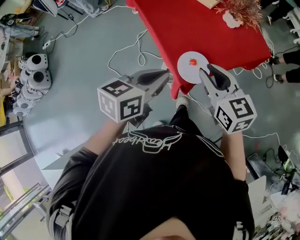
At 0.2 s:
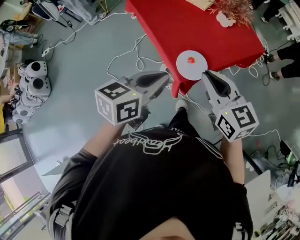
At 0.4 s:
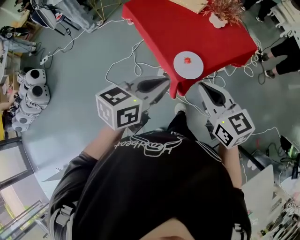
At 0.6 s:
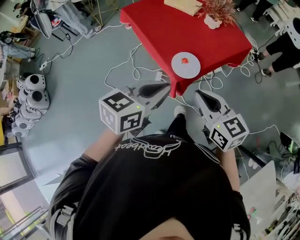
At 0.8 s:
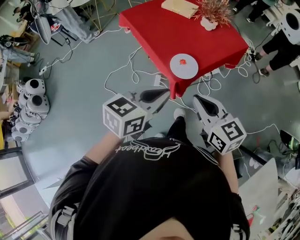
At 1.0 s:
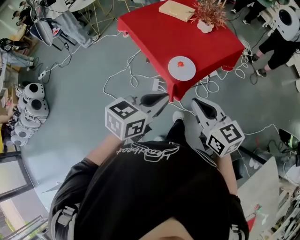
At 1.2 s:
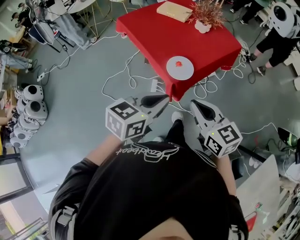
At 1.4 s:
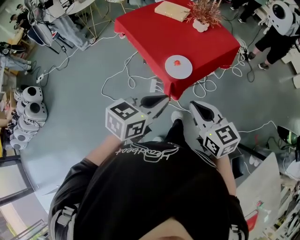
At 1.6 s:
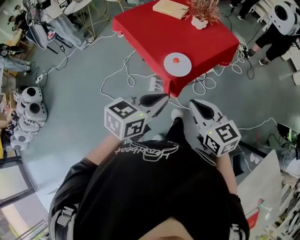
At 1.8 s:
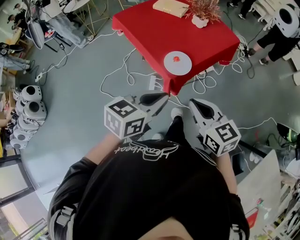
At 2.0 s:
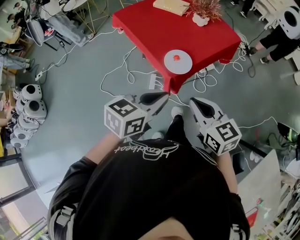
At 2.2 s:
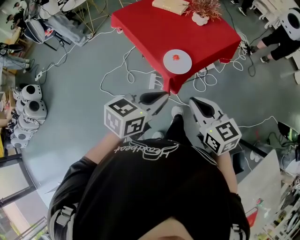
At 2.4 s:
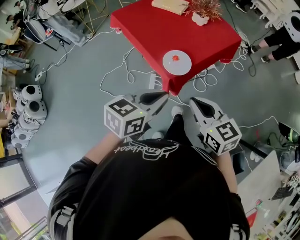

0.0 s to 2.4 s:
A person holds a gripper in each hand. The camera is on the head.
0.0 to 1.2 s: The grippers both shift backward by roughly 15 cm. The right gripper closes its fingers.
1.2 to 2.4 s: The grippers make only small movements.

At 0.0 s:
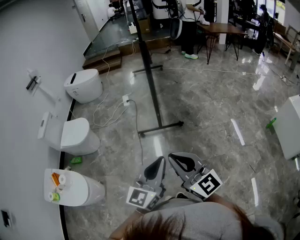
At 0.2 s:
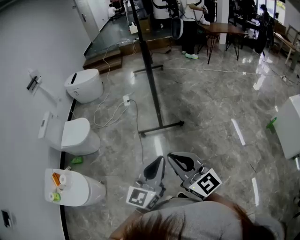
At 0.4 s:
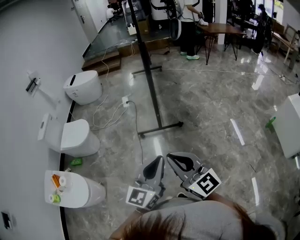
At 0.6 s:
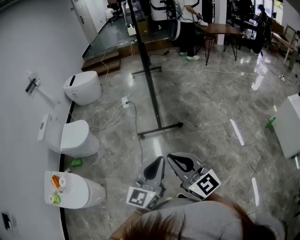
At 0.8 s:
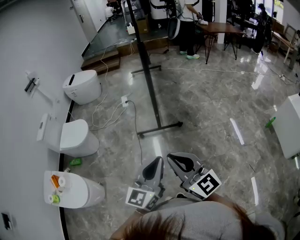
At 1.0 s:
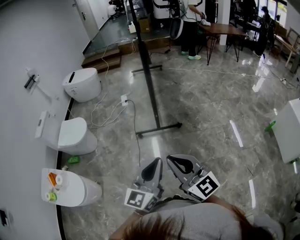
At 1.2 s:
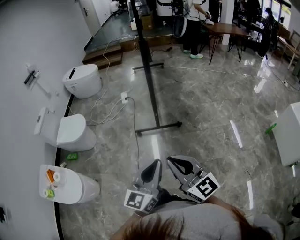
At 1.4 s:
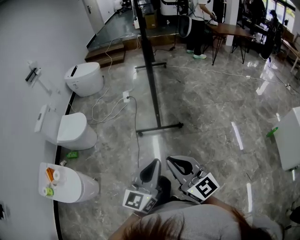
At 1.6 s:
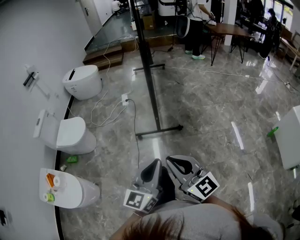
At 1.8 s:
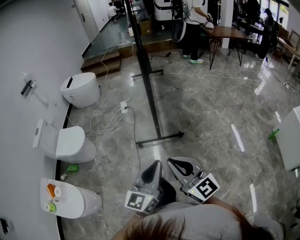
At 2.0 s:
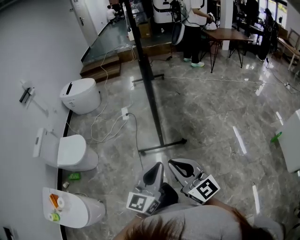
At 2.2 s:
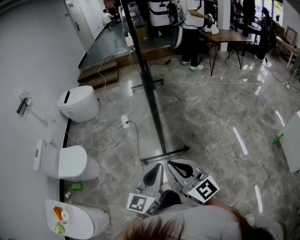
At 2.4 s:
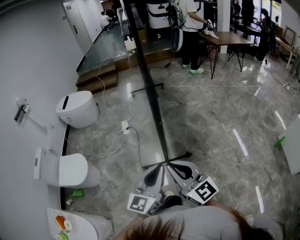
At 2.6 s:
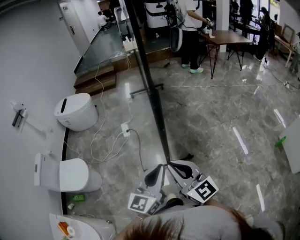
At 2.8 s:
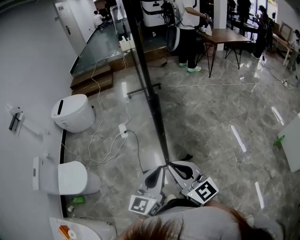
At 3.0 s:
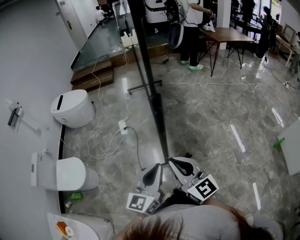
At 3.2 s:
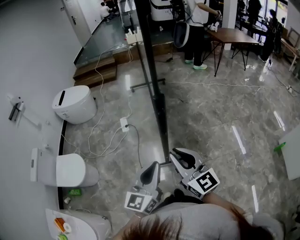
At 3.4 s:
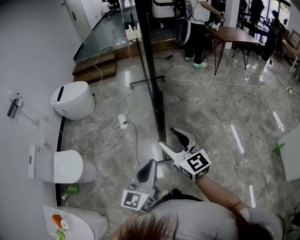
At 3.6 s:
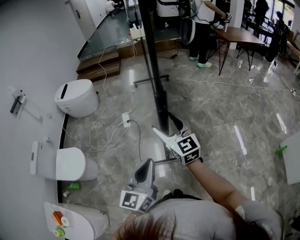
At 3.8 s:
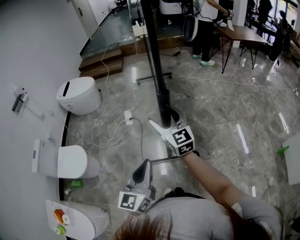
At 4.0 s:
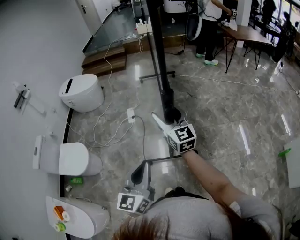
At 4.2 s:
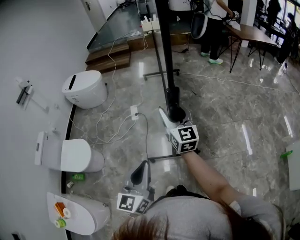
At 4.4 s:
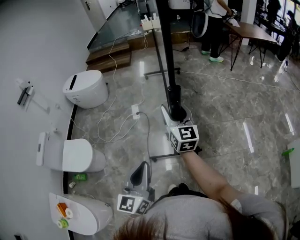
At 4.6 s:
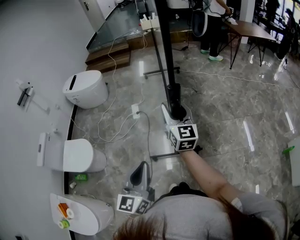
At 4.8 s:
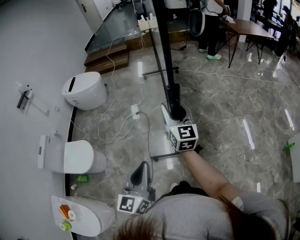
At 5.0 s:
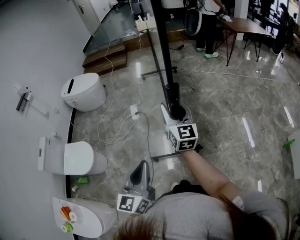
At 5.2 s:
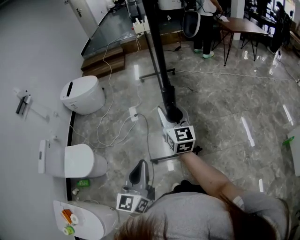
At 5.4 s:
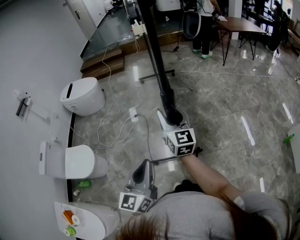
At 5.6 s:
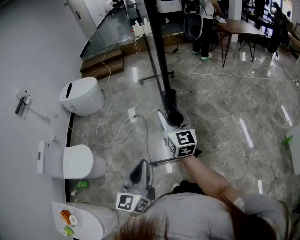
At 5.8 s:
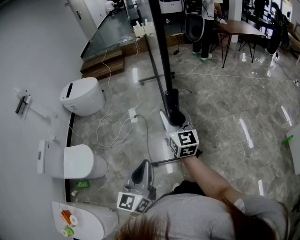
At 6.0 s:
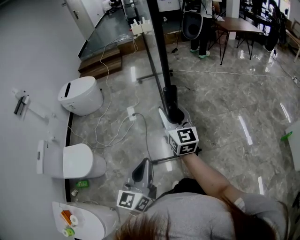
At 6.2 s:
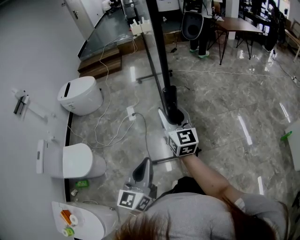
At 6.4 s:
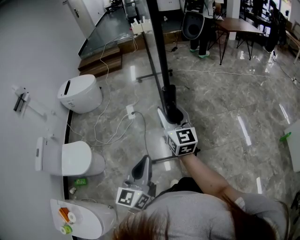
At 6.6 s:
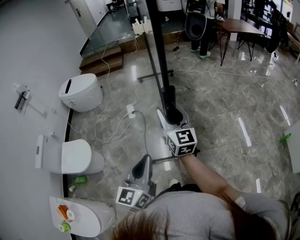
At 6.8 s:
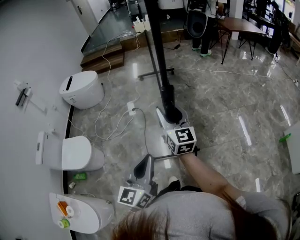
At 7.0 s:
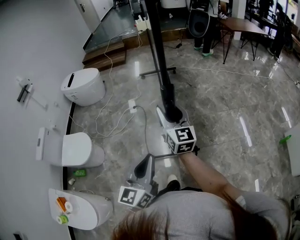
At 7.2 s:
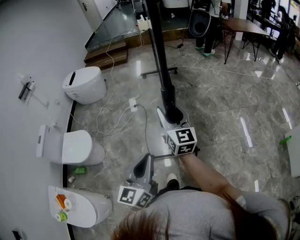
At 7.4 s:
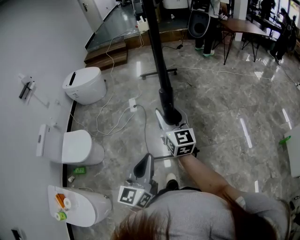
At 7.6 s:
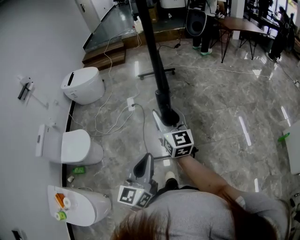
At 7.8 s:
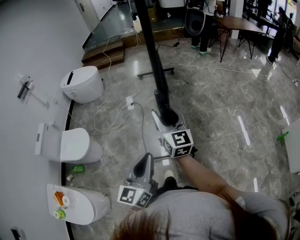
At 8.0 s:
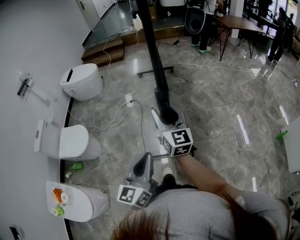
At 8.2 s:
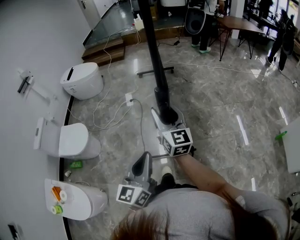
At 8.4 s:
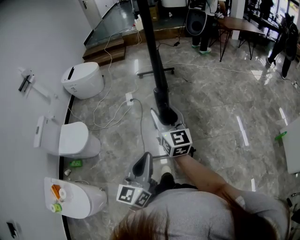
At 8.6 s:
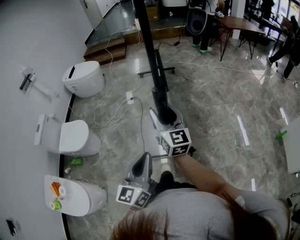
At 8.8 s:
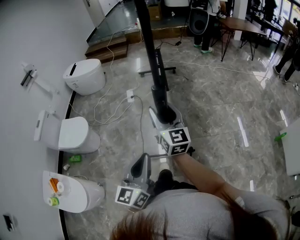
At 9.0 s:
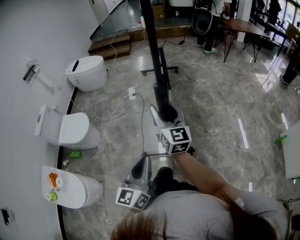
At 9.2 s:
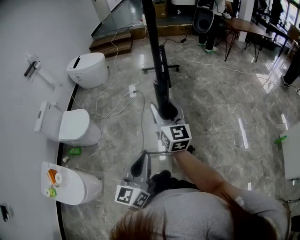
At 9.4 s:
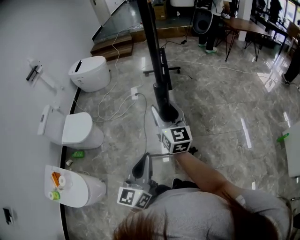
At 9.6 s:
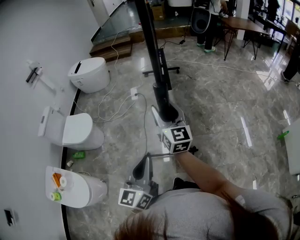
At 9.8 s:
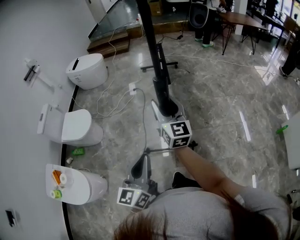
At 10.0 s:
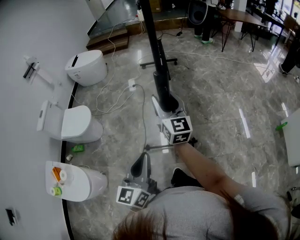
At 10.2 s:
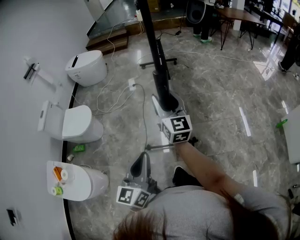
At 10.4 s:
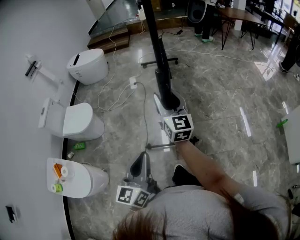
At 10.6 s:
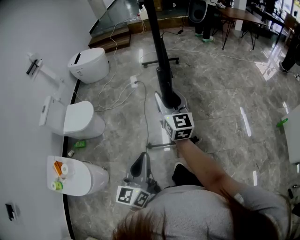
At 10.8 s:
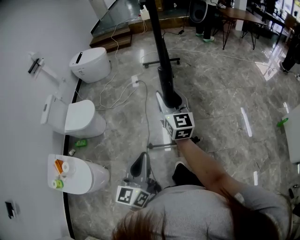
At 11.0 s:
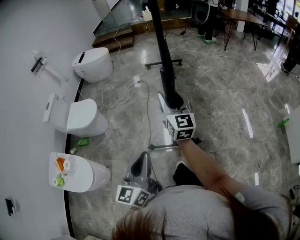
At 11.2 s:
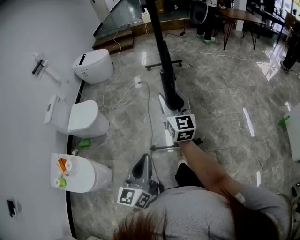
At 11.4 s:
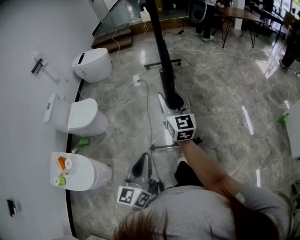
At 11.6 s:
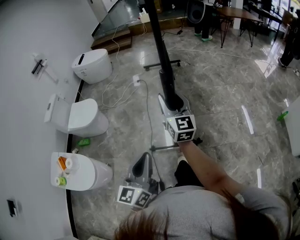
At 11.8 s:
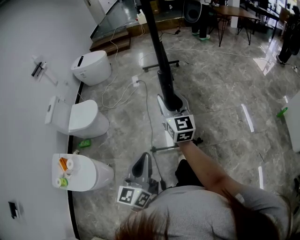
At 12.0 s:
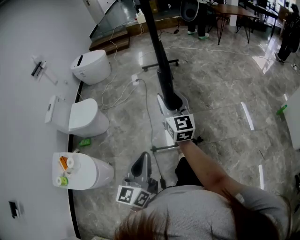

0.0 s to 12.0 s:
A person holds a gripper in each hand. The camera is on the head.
0.0 to 1.6 s: Both grippers travel together forward, roughly 5 cm.
1.6 to 3.0 s: The grippers both shift forward by approximately 35 cm.
3.0 to 4.4 s: The right gripper moves forward, approximately 20 cm, and opens; the left gripper moves to the left, approximately 10 cm.
4.4 to 6.0 s: The right gripper is displaced backward by roughly 5 cm.
6.0 to 7.6 s: The right gripper shifts some 10 cm backward, while the left gripper is displaced backward and to the right by approximately 10 cm.
7.6 to 9.0 s: Both grippers move backward, about 10 cm.
9.0 to 10.4 s: The two grippers go about 5 cm backward.
10.4 to 12.0 s: Both grippers move backward, about 10 cm.

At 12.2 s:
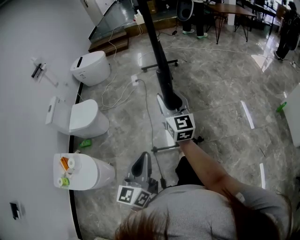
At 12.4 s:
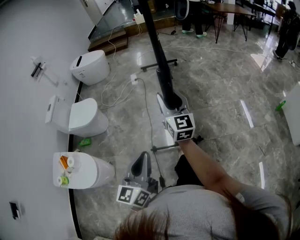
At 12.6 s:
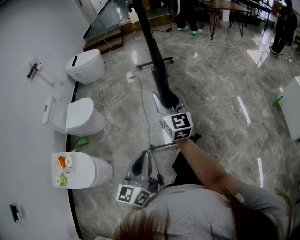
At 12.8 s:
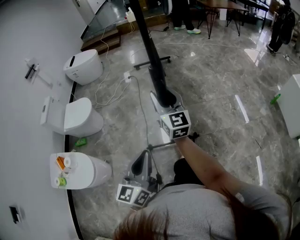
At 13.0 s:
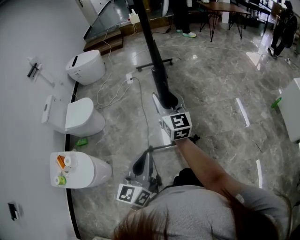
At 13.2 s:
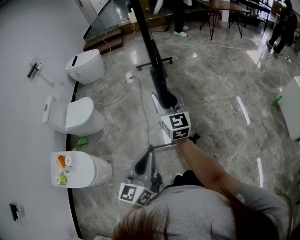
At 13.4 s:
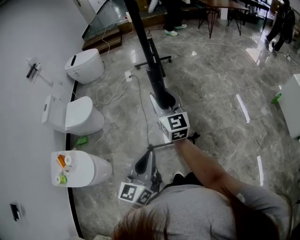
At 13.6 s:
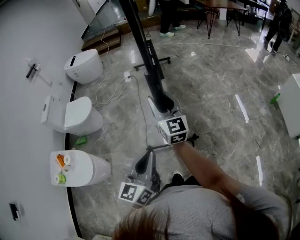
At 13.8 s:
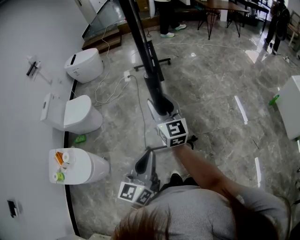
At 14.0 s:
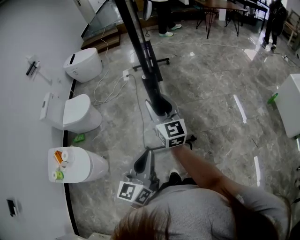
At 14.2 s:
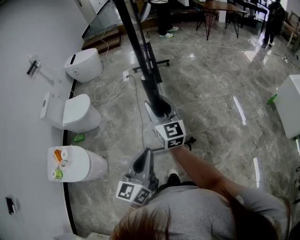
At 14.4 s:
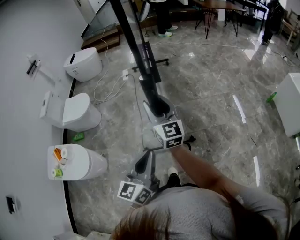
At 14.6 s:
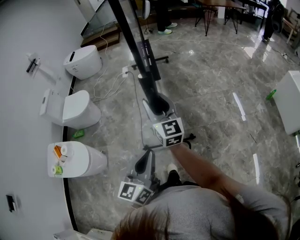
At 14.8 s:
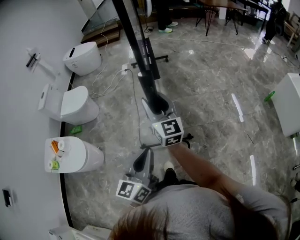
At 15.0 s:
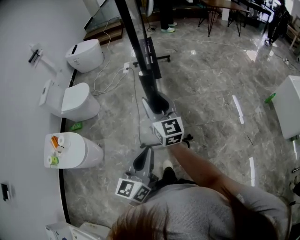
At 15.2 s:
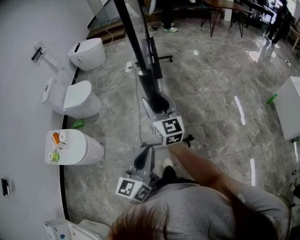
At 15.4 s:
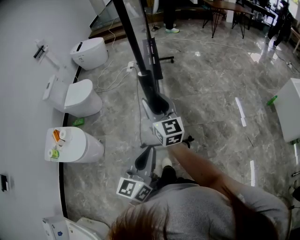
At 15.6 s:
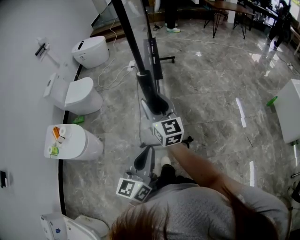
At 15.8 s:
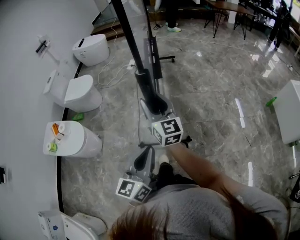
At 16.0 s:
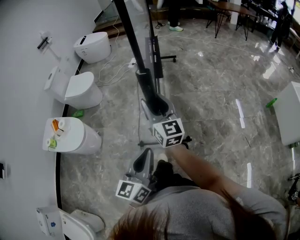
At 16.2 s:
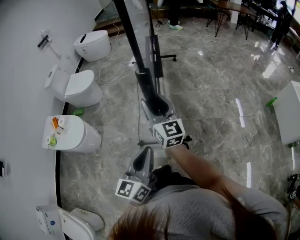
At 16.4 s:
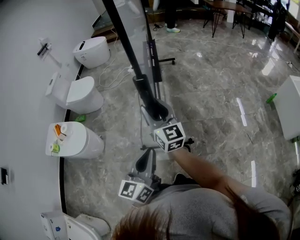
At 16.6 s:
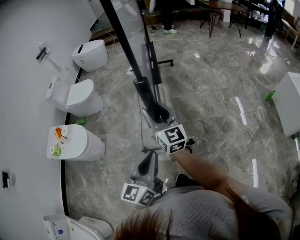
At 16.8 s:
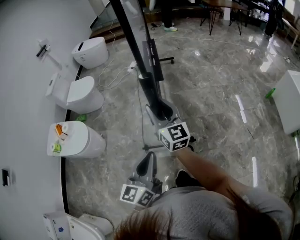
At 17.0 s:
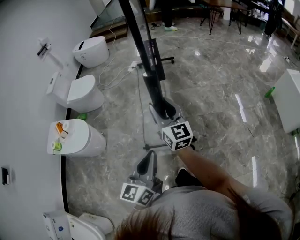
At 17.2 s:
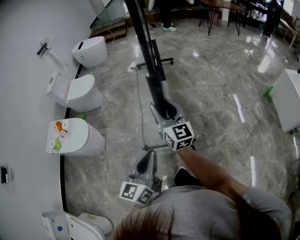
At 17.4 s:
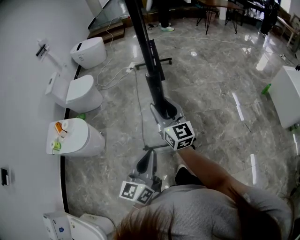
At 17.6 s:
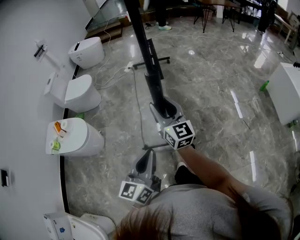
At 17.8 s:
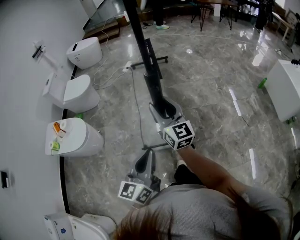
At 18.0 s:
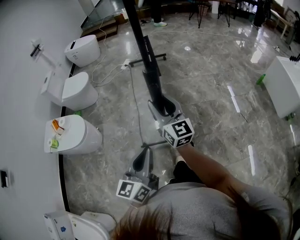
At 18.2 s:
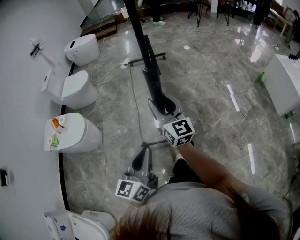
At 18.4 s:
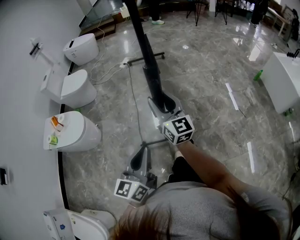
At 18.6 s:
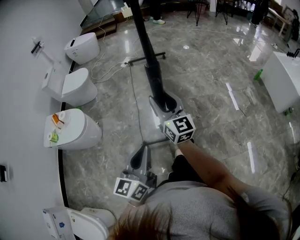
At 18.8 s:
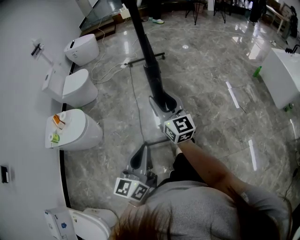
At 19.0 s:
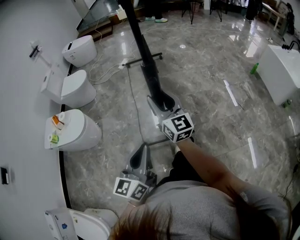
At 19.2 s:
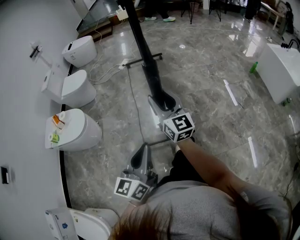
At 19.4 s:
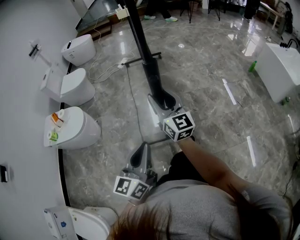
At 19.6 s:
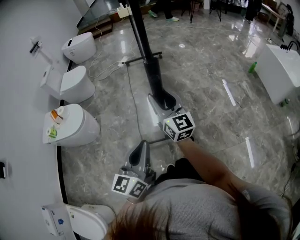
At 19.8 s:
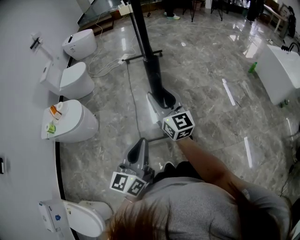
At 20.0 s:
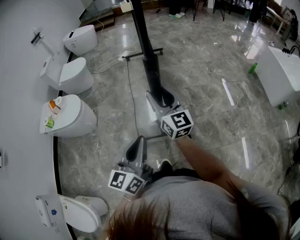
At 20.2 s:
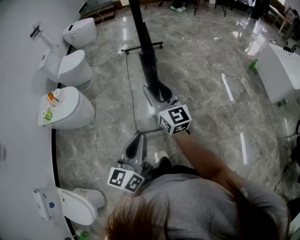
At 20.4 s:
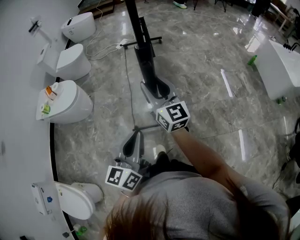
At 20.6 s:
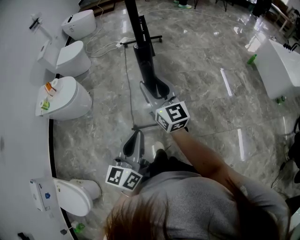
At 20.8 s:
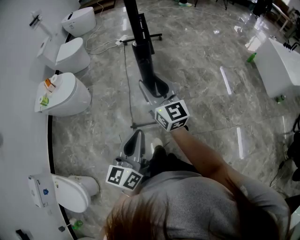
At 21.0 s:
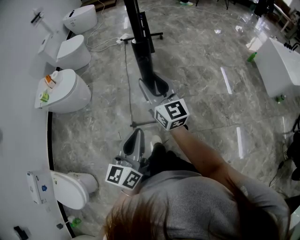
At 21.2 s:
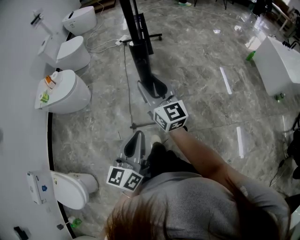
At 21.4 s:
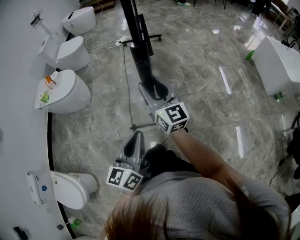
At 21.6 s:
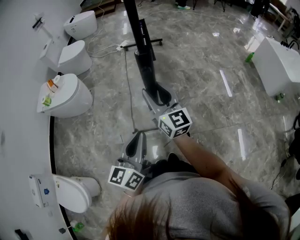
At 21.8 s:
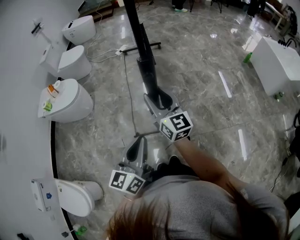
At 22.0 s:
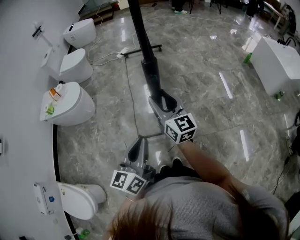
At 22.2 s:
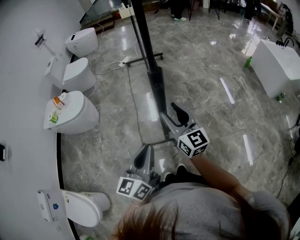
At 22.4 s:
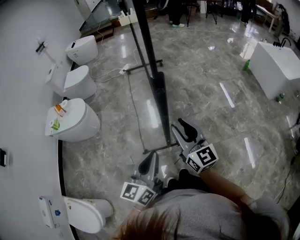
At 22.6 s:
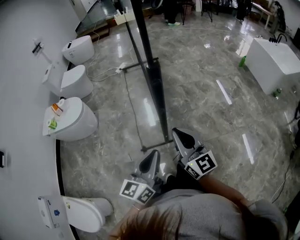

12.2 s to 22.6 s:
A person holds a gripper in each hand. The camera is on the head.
12.2 to 13.6 s: The right gripper goes about 5 cm backward. Meanwhile the left gripper ends up some 5 cm from where it was.
13.6 to 15.2 s: The two grippers go approximately 10 cm backward.
15.2 to 16.6 s: The two grippers go some 10 cm backward.
16.6 to 18.2 s: Both grippers move backward, roughly 15 cm.
18.2 to 19.6 s: Both grippers travel together backward, some 10 cm.
19.6 to 21.2 s: The grippers both shift backward by about 15 cm.
21.2 to 22.6 s: The right gripper goes approximately 15 cm backward, and closes.
